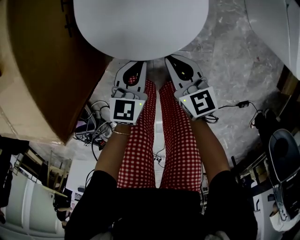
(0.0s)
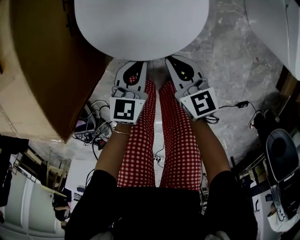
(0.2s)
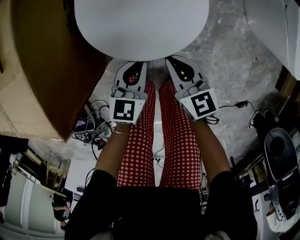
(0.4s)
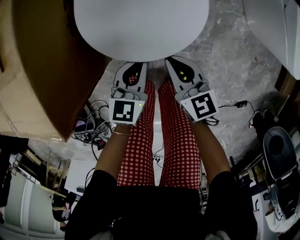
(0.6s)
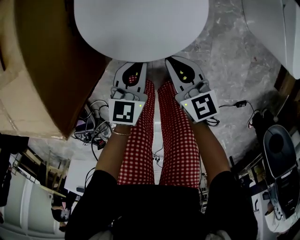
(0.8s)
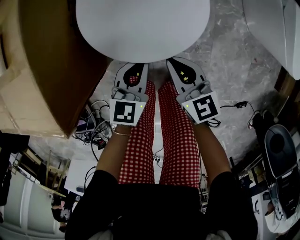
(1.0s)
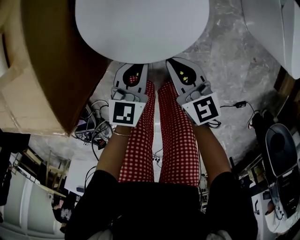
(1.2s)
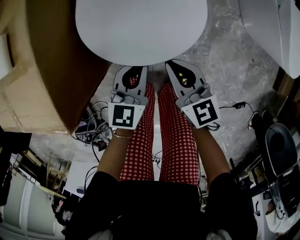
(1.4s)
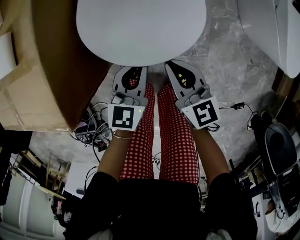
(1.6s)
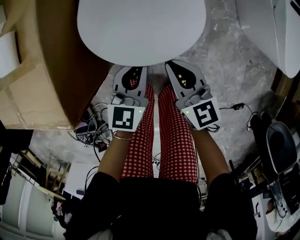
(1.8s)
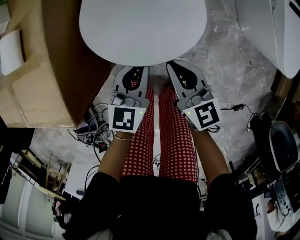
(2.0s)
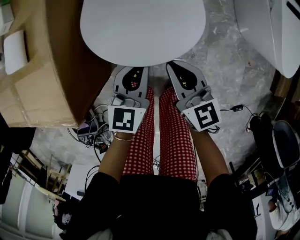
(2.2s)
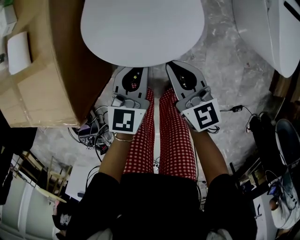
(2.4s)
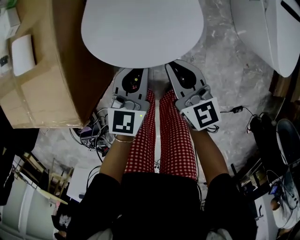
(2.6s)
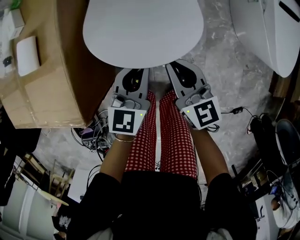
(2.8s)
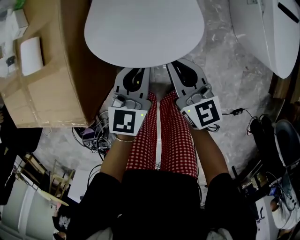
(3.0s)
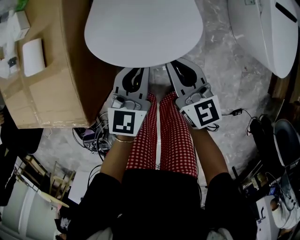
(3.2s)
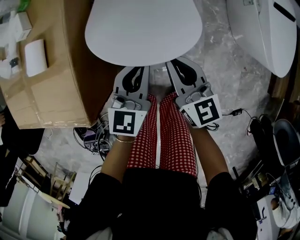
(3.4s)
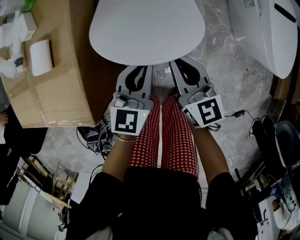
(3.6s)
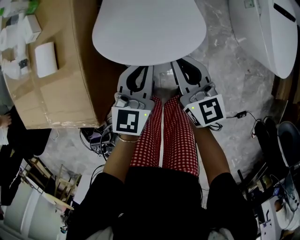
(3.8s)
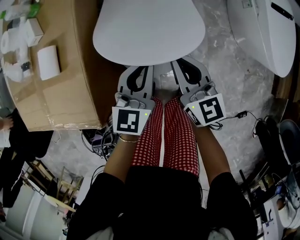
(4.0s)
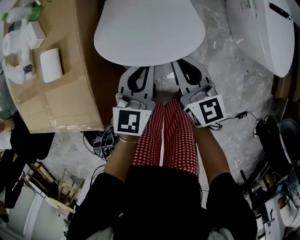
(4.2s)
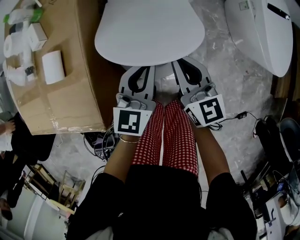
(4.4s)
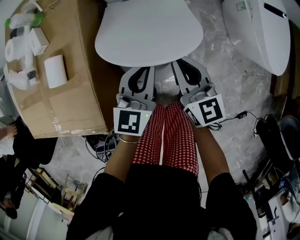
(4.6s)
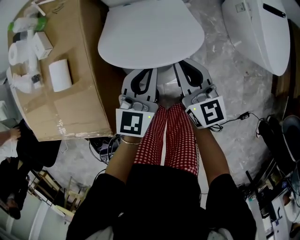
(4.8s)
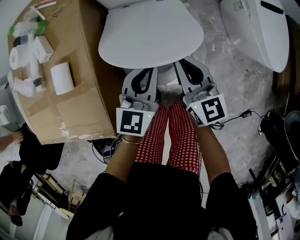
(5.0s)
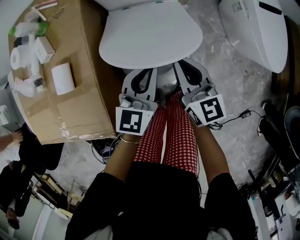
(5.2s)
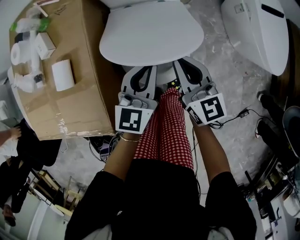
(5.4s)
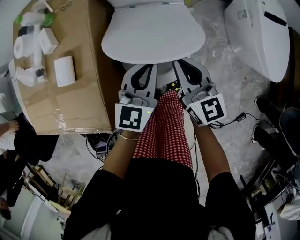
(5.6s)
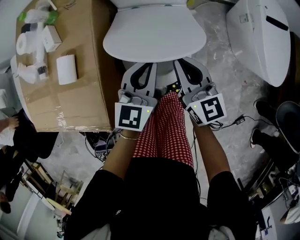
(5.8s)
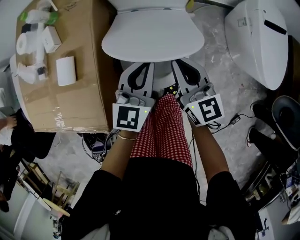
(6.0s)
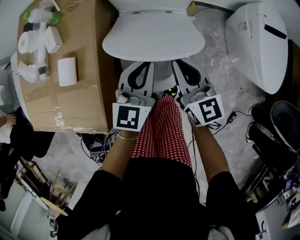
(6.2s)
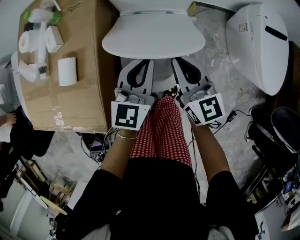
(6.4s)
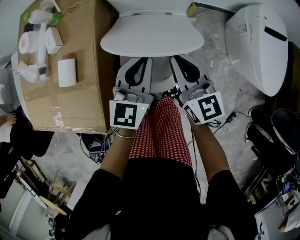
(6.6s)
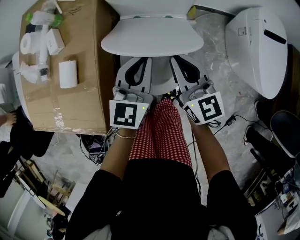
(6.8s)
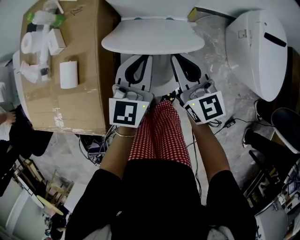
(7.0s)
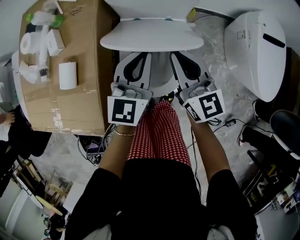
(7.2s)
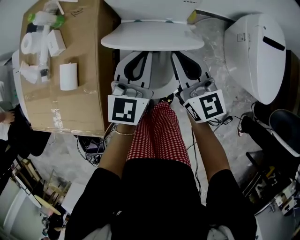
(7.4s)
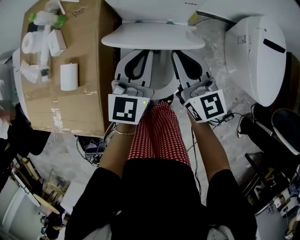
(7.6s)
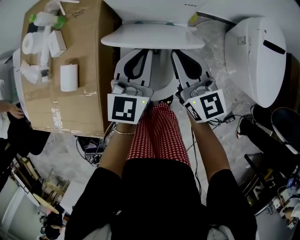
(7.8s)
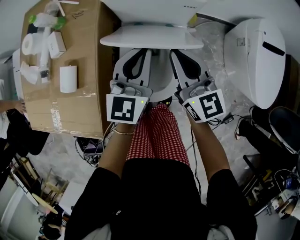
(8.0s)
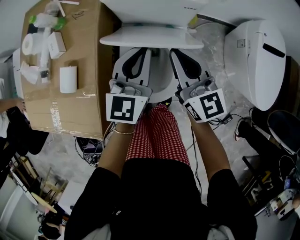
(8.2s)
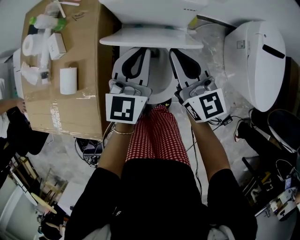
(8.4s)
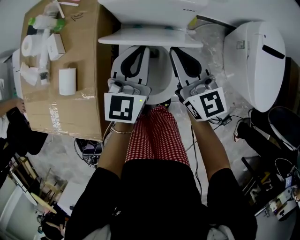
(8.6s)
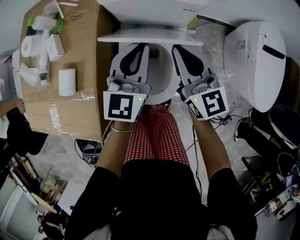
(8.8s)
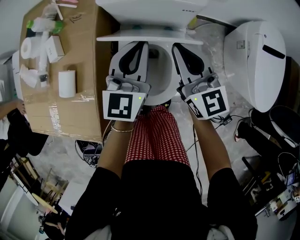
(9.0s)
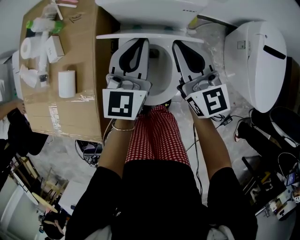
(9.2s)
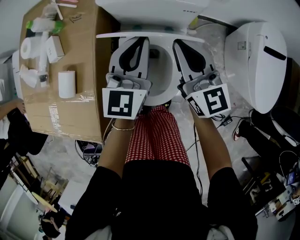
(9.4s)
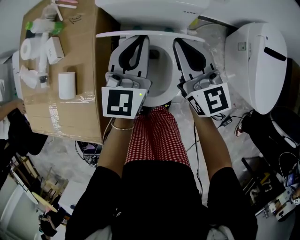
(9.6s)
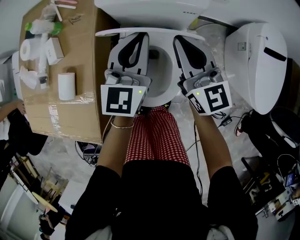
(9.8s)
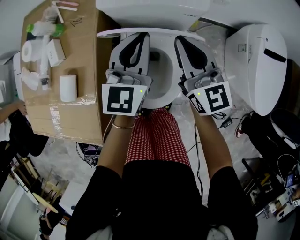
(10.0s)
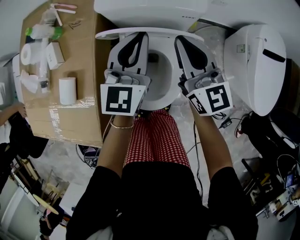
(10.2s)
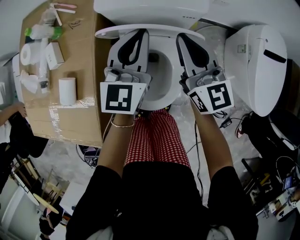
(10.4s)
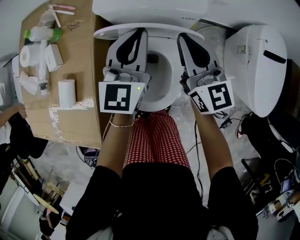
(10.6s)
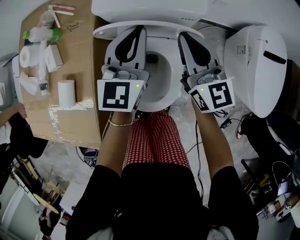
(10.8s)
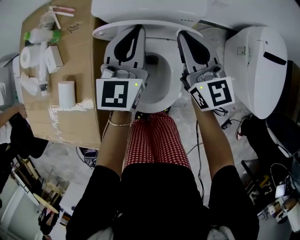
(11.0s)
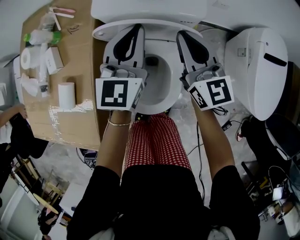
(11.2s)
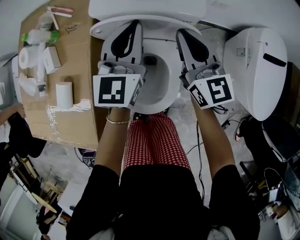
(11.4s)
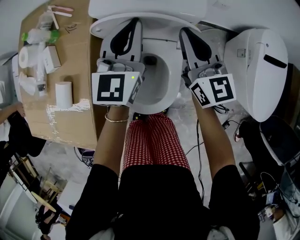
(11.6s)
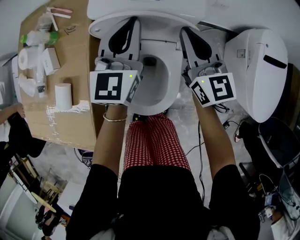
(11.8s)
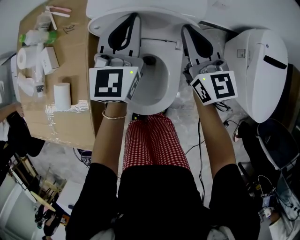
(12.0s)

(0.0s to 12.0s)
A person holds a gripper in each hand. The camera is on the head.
0.0s - 1.6s: Both grippers move upward, approximately 10 cm.
1.6s - 3.0s: The grippers both shift upward and forward by roughly 10 cm.
3.0s - 4.4s: Both grippers move upward, approximately 5 cm.
4.4s - 6.0s: The right gripper shifts by approximately 5 cm; the left gripper changes place by roughly 5 cm.
6.0s - 7.6s: The grippers both shift forward by roughly 10 cm.
7.6s - 9.0s: The left gripper moves roughly 5 cm.
9.0s - 10.4s: Both grippers travel together forward, some 5 cm.
10.4s - 12.0s: Both grippers travel together forward, approximately 5 cm.

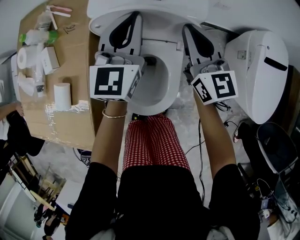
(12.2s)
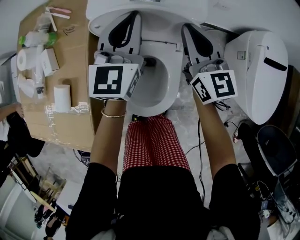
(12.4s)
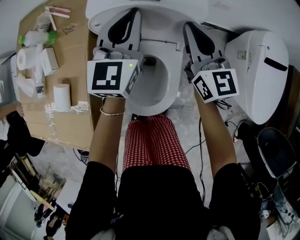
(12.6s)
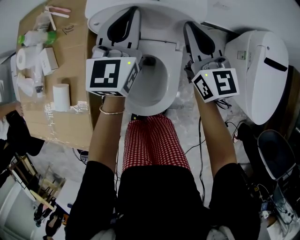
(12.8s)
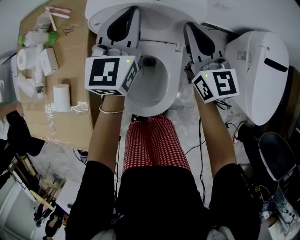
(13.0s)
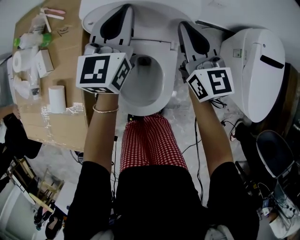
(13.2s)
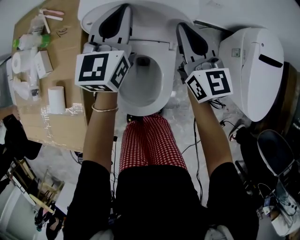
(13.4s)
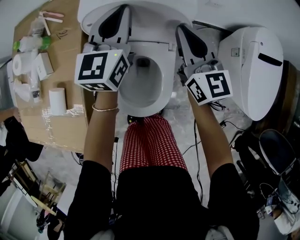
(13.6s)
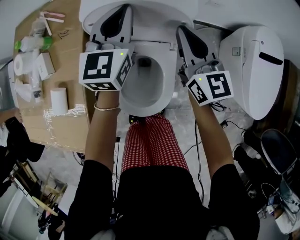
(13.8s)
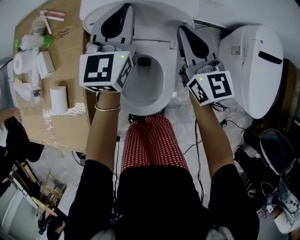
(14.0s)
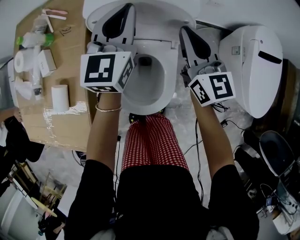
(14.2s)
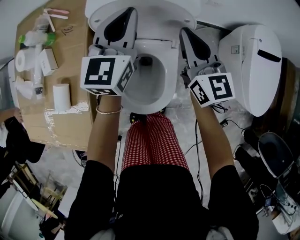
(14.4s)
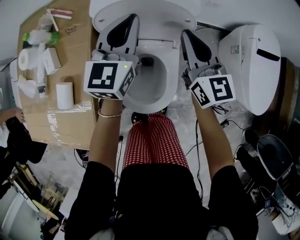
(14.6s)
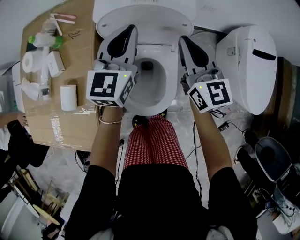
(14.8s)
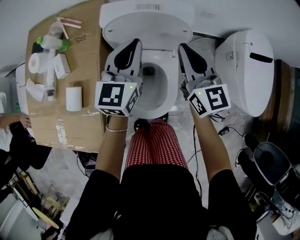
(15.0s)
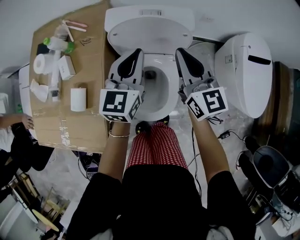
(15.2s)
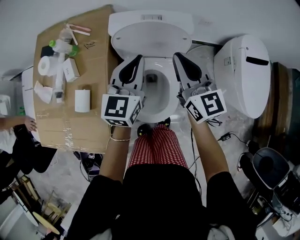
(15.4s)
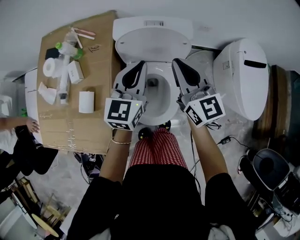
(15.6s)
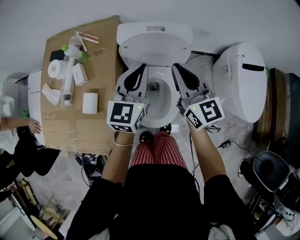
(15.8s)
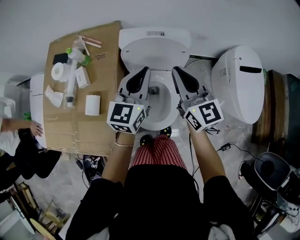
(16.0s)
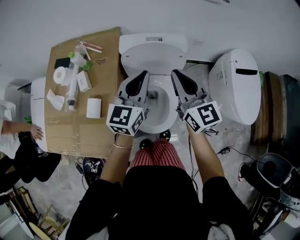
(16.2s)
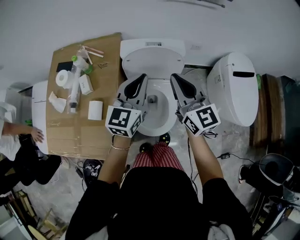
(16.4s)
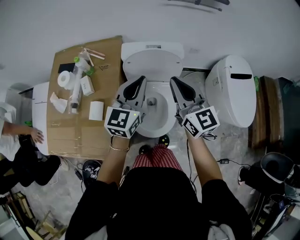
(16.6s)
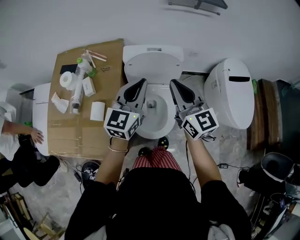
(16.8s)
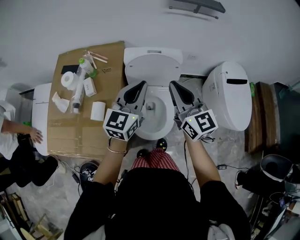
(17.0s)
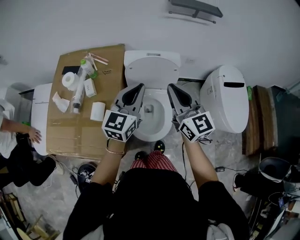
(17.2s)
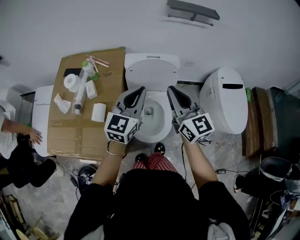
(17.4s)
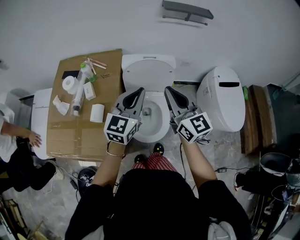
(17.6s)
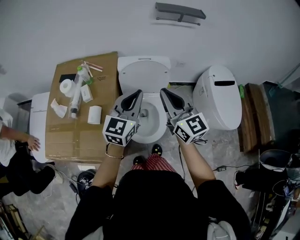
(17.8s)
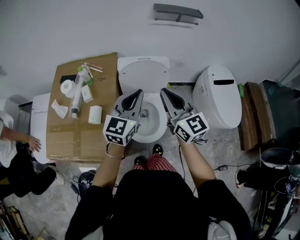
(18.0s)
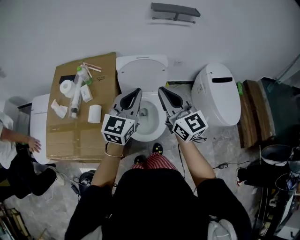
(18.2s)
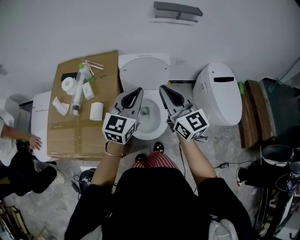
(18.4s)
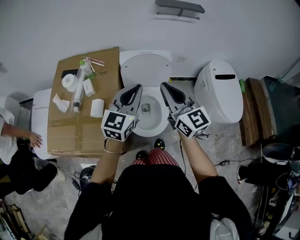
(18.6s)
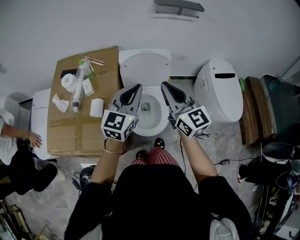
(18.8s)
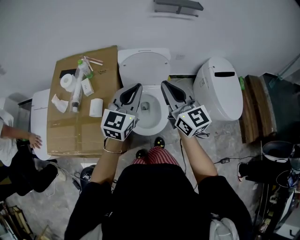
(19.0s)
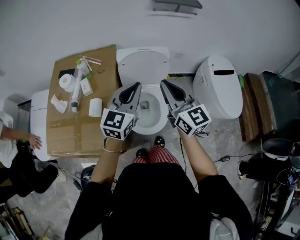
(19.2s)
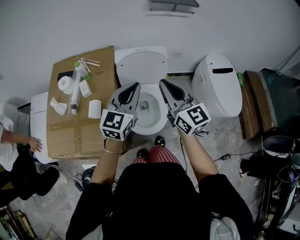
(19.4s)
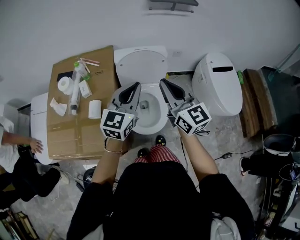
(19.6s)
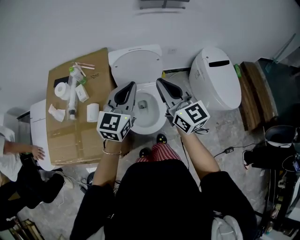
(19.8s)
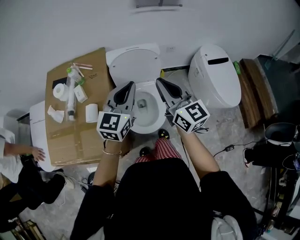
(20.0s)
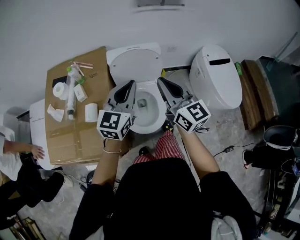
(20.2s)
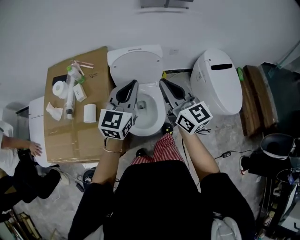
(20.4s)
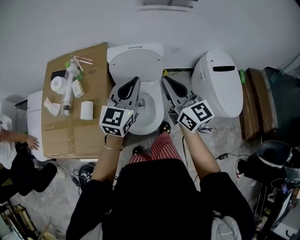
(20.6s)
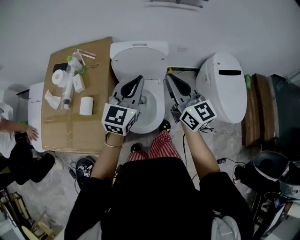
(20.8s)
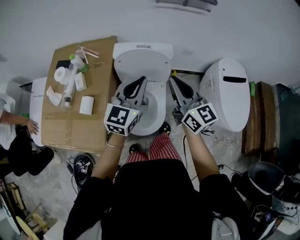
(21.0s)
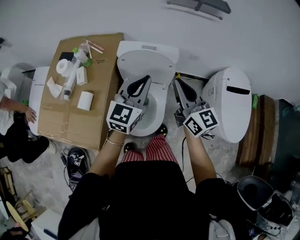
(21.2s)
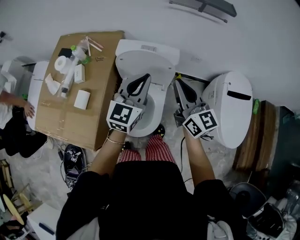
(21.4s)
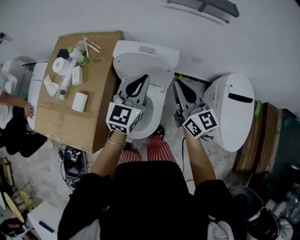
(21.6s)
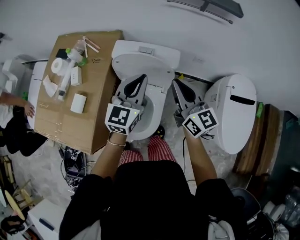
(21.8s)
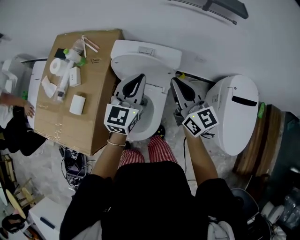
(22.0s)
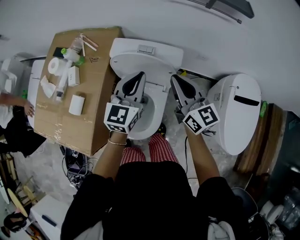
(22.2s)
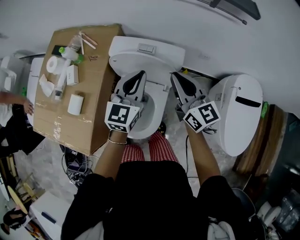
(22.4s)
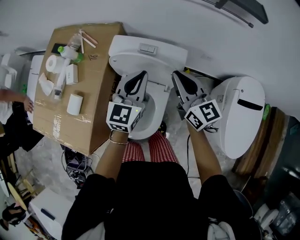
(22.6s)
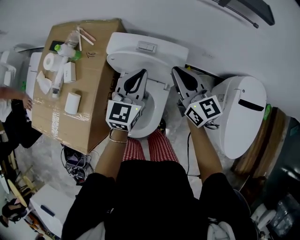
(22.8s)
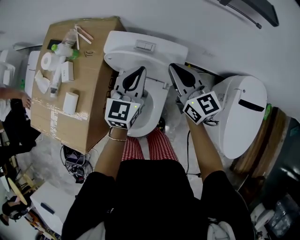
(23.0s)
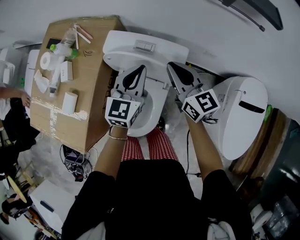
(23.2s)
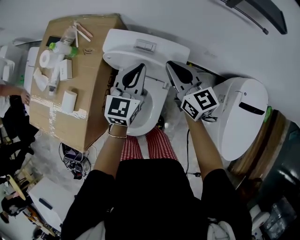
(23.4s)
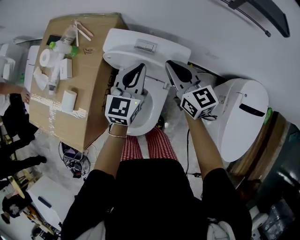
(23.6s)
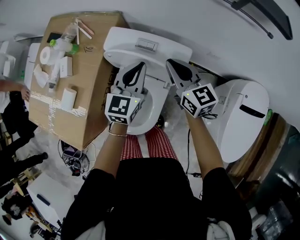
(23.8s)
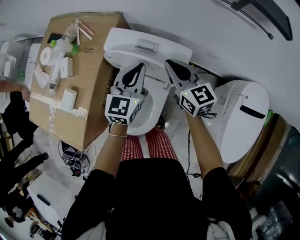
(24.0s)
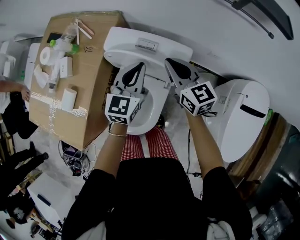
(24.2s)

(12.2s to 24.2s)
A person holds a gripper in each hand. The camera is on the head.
12.2s - 13.8s: The grippers move only a little.
13.8s - 15.2s: The left gripper heads backward, covering some 10 cm, while the right gripper travels upward and backward by about 10 cm.
15.2s - 16.6s: Both grippers move upward and backward, roughly 15 cm.
16.6s - 18.2s: Both grippers move backward and upward, approximately 10 cm.
18.2s - 19.8s: There are only small adjustments of the grippers.
19.8s - 21.2s: The two grippers go some 15 cm forward and to the right.
21.2s - 22.6s: The grippers both shift forward and downward by about 15 cm.
22.6s - 24.2s: The left gripper moves downward, roughly 5 cm. Meanwhile the right gripper moves forward and downward, about 10 cm.
